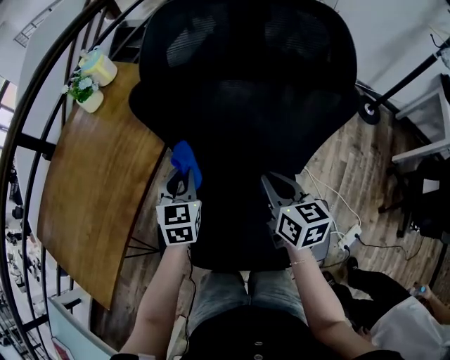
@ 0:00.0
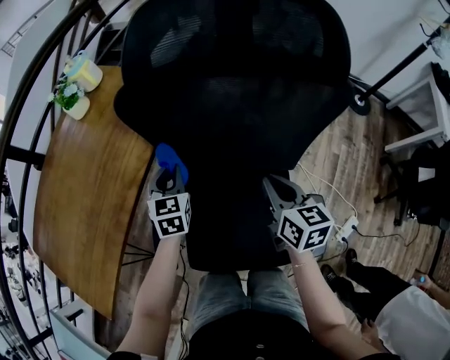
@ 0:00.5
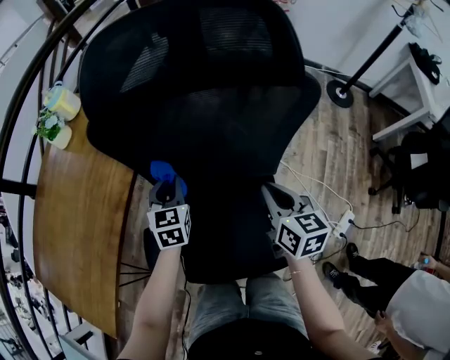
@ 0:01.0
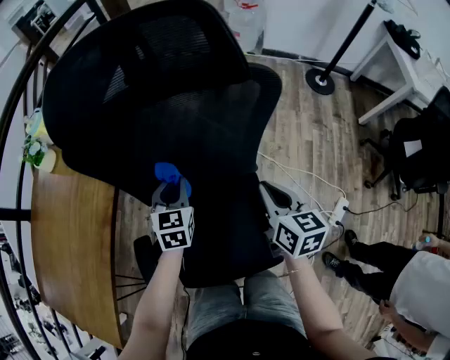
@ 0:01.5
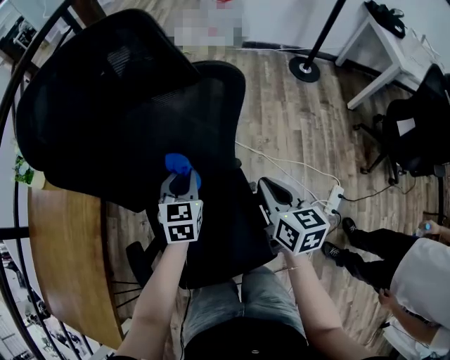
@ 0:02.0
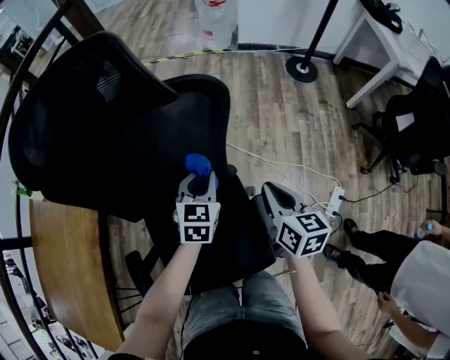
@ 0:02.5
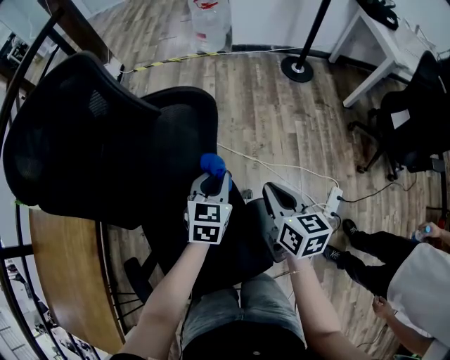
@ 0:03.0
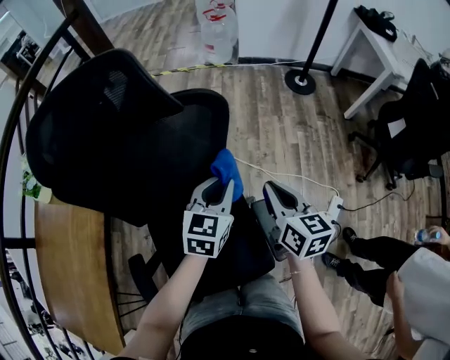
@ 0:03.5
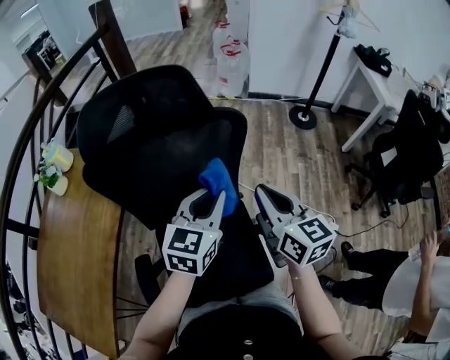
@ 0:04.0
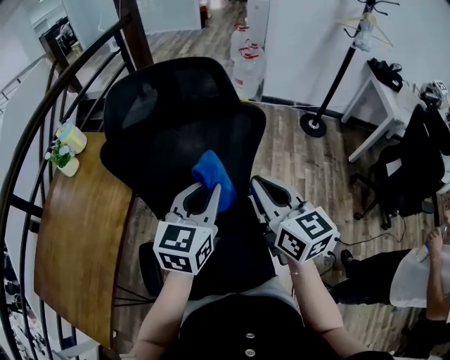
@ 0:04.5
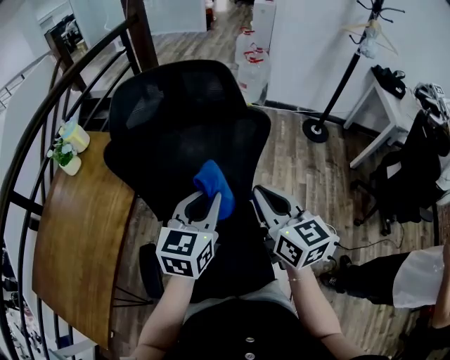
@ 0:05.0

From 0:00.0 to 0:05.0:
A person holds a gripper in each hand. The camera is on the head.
From 0:00.0 to 0:02.5: The left gripper changes place by some 30 cm, and changes its angle by approximately 30 degrees. Meanwhile the right gripper shifts by roughly 25 cm, and swivels some 30 degrees.
From 0:02.5 to 0:05.0: The left gripper heads upward and backward, covering about 25 cm, and changes its angle by roughly 20 degrees, while the right gripper travels upward and to the left by some 25 cm, and changes its angle by roughly 30 degrees.

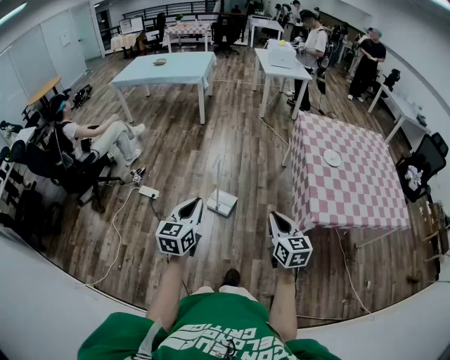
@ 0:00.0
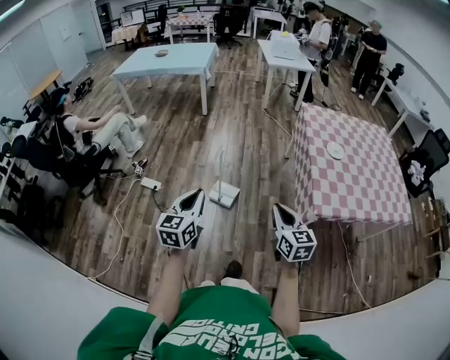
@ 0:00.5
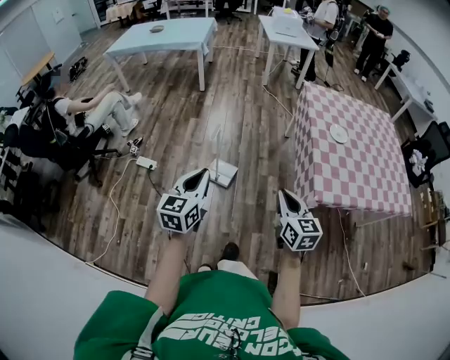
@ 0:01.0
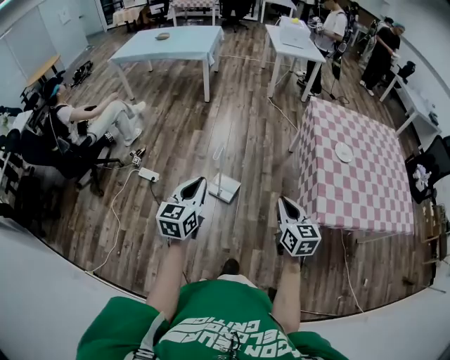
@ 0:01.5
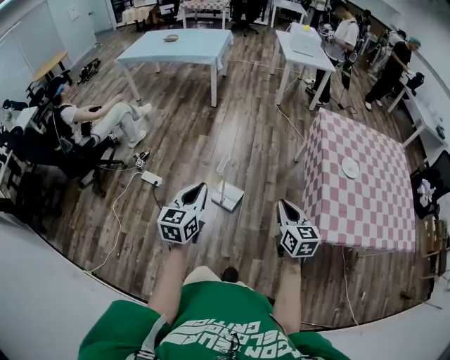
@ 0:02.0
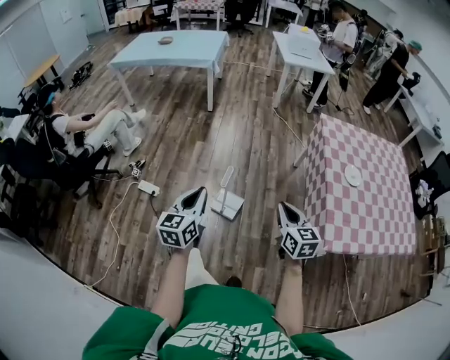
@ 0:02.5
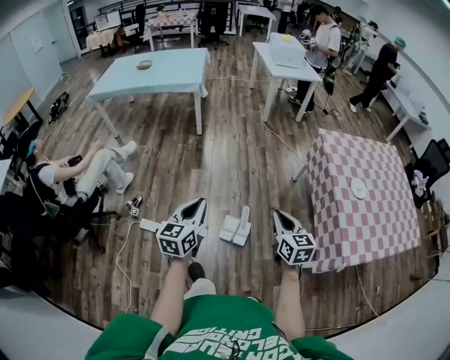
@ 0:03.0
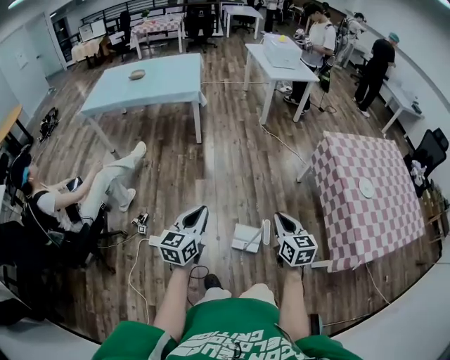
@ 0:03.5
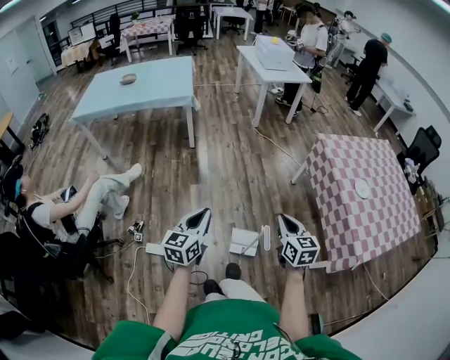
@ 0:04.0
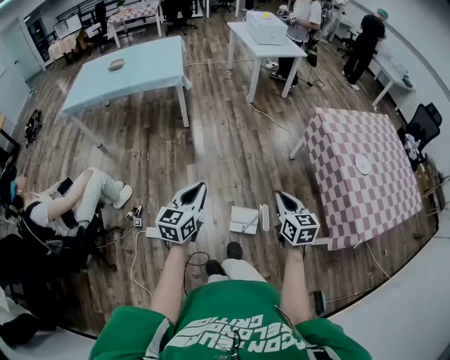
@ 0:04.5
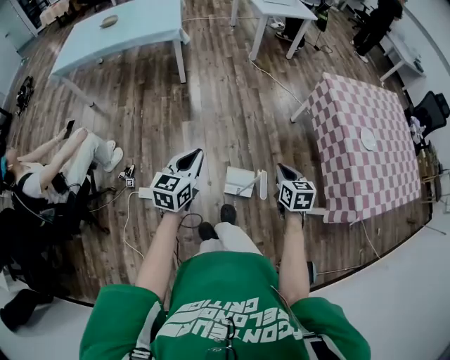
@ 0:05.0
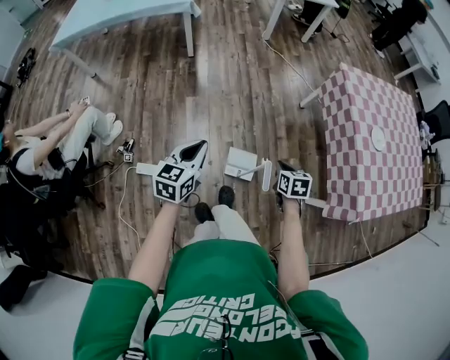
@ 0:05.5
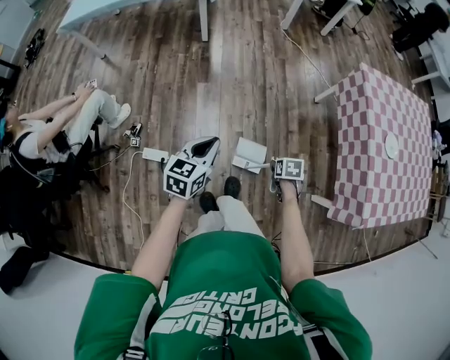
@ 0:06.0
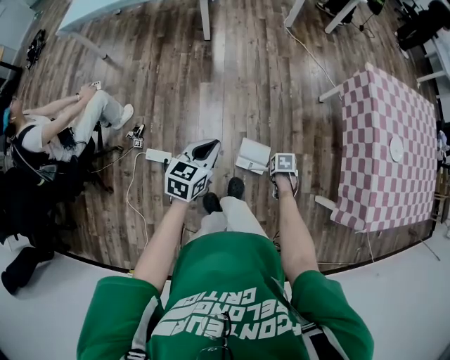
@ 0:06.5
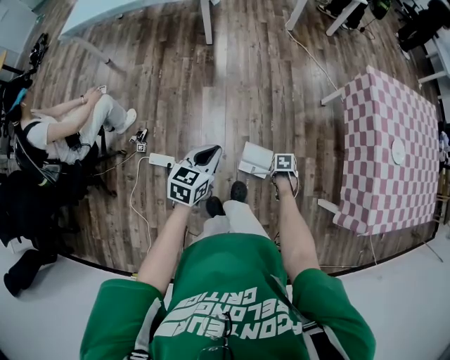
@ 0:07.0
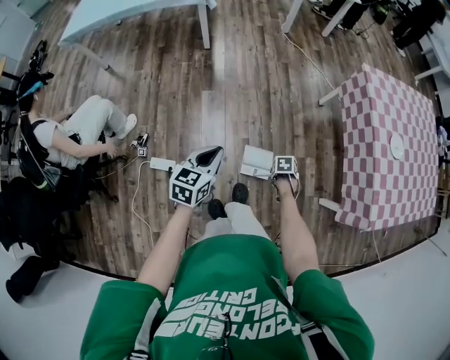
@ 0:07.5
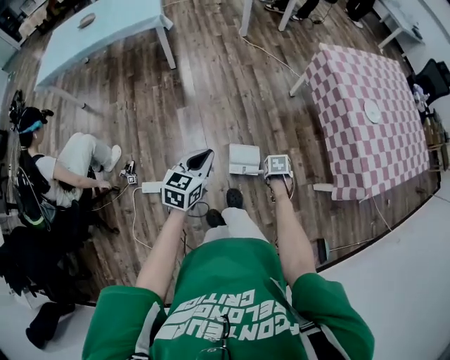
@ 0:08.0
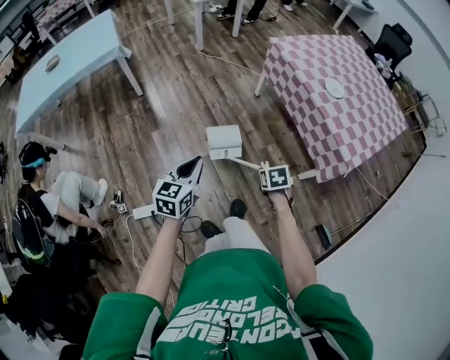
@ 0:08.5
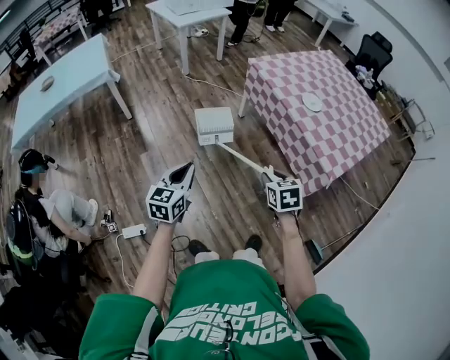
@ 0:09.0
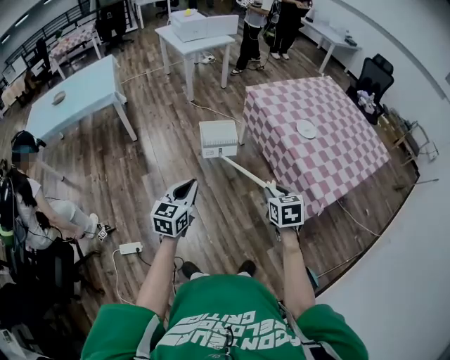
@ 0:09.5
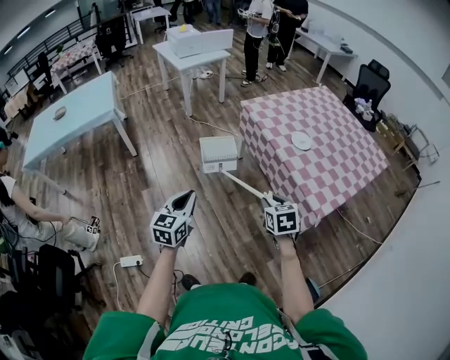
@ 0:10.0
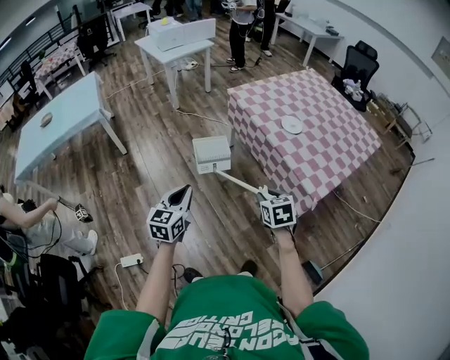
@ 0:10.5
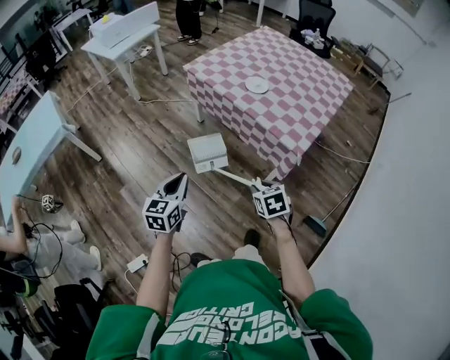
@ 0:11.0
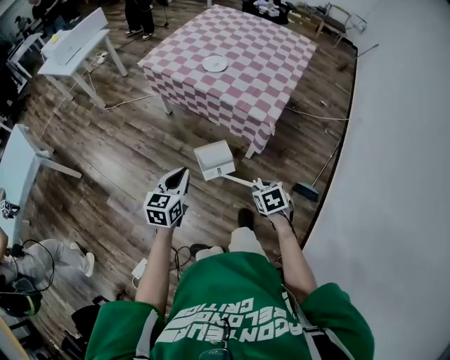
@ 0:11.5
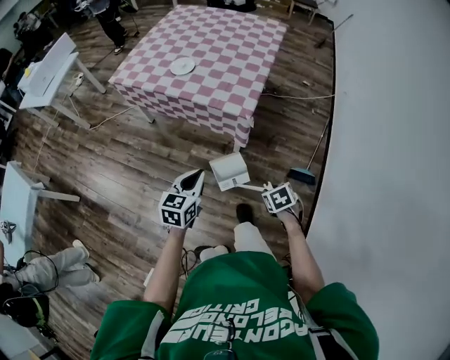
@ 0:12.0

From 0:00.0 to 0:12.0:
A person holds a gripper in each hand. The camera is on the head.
From 0:00.0 to 0:02.0: Both grippers travel together forward, about 15 cm.
From 0:02.0 to 0:04.0: The left gripper goes some 40 cm forward and to the left, and changes its angle by approximately 20 degrees. Meanwhile the right gripper moves to the left and forward, approximately 40 cm.
From 0:04.0 to 0:06.0: The right gripper travels downward by about 30 cm, tips its fingers downward by some 50 degrees, and opens, while the left gripper is displaced downward by roughly 15 cm.
From 0:06.0 to 0:08.0: The right gripper goes downward and returns, approximately 10 cm each way, and closes its fingers.
From 0:08.0 to 0:10.0: The right gripper moves upward, about 30 cm, and points its fingers approximately 40 degrees further upward; the left gripper shifts by approximately 25 cm.
From 0:10.0 to 0:12.0: The left gripper changes place by roughly 30 cm, and changes its angle by approximately 50 degrees. Meanwhile the right gripper shifts by about 40 cm, and rotates some 40 degrees.

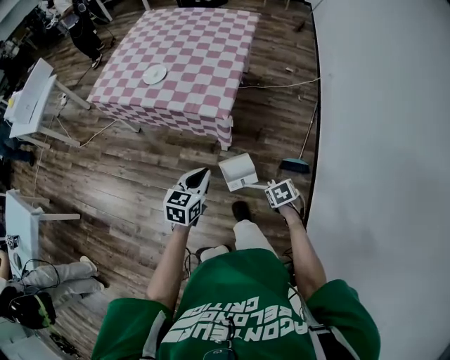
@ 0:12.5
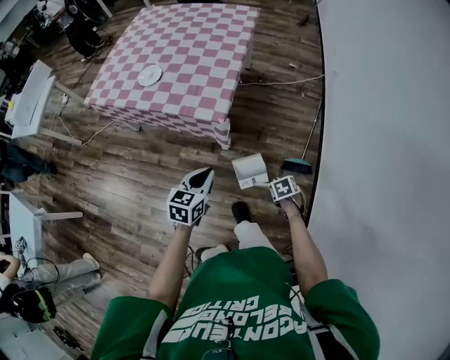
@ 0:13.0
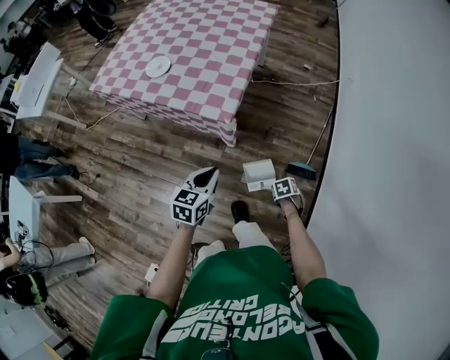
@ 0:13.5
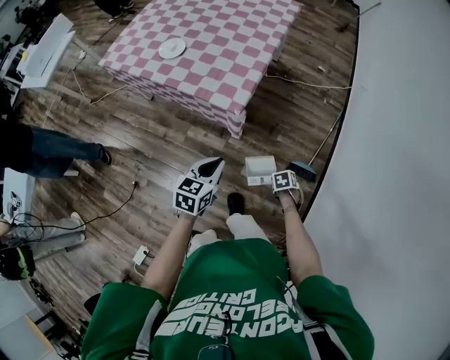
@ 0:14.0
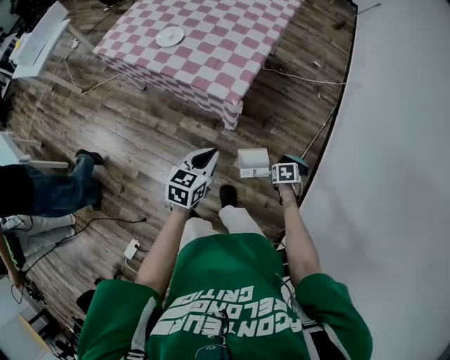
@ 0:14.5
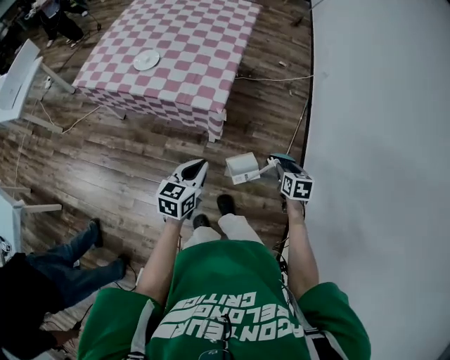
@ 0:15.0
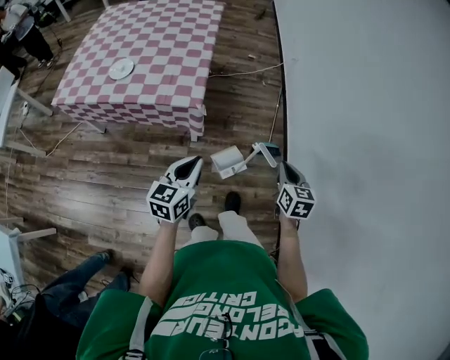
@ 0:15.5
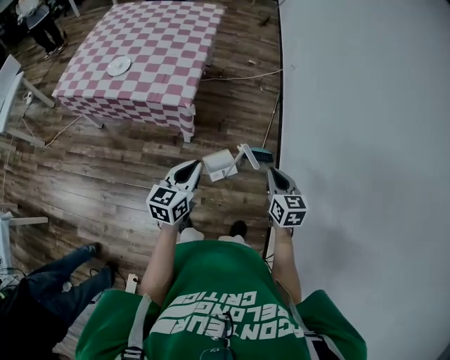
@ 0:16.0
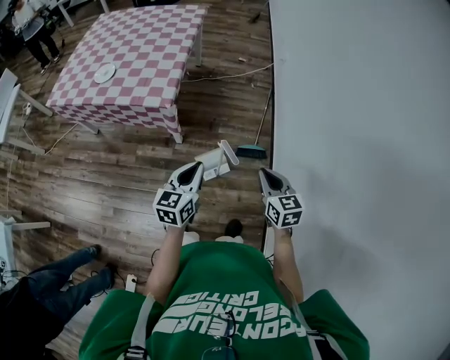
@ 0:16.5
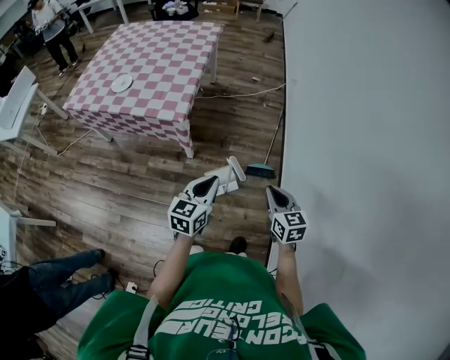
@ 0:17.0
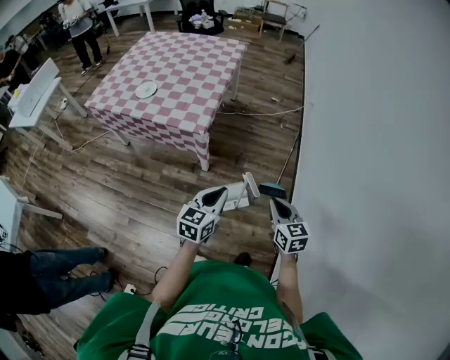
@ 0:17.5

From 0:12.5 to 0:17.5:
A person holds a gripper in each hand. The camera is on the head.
From 0:12.5 to 0:15.0: The right gripper travels downward and back again, about 15 cm each way, and swivels some 30 degrees.
From 0:15.0 to 0:17.5: The left gripper shifts approximately 20 cm to the right; the right gripper shifts roughly 20 cm upward, backward and to the right, rotates roughly 30 degrees, and closes its fingers.

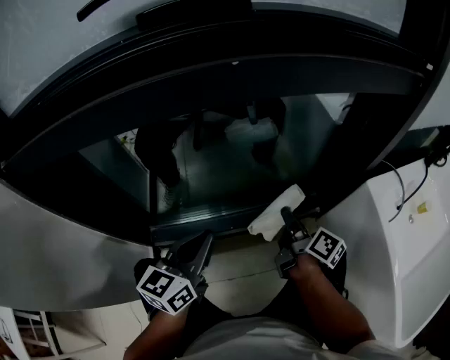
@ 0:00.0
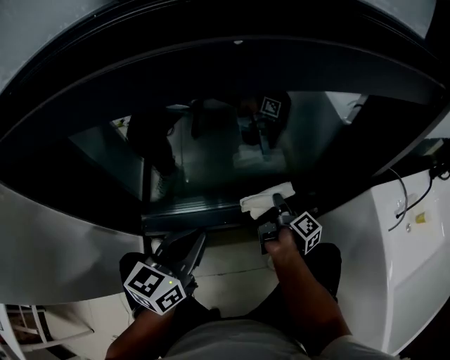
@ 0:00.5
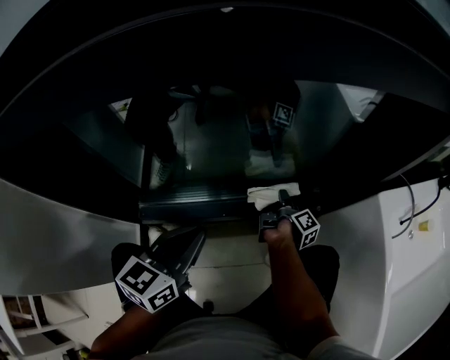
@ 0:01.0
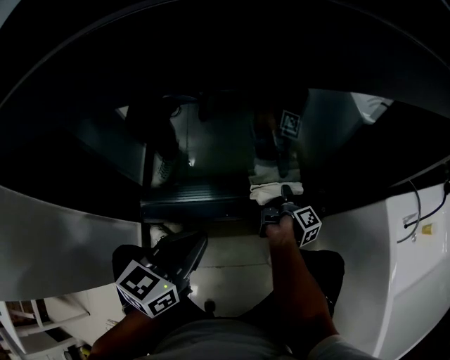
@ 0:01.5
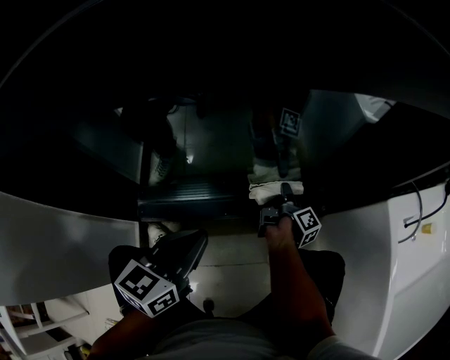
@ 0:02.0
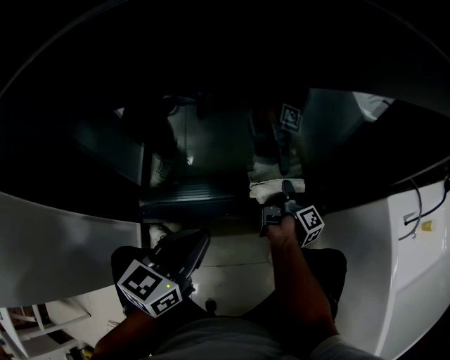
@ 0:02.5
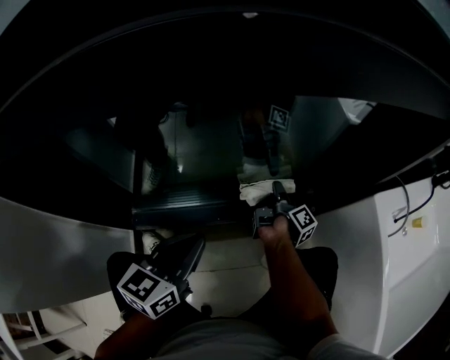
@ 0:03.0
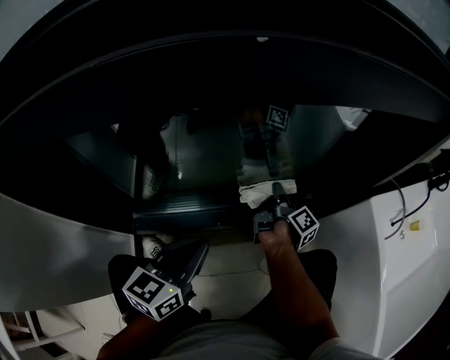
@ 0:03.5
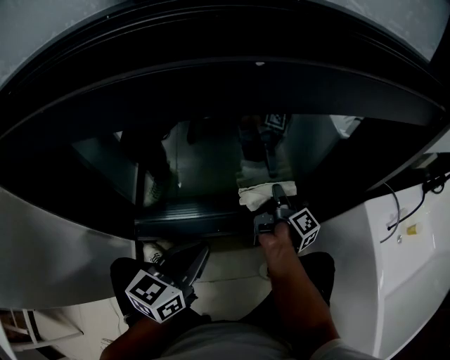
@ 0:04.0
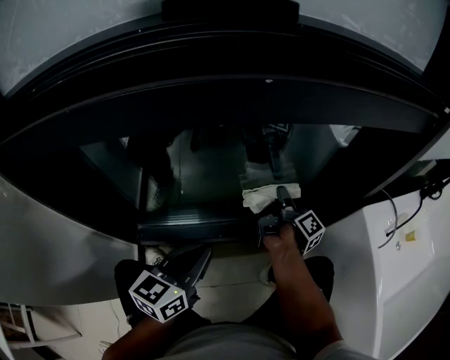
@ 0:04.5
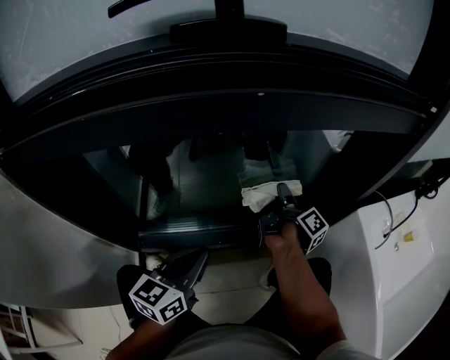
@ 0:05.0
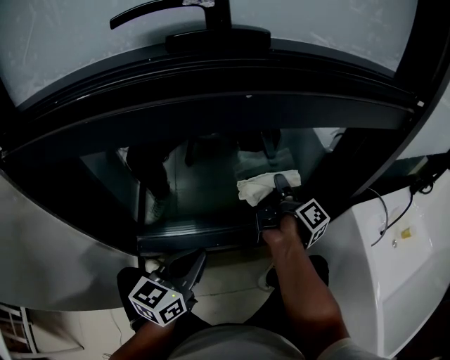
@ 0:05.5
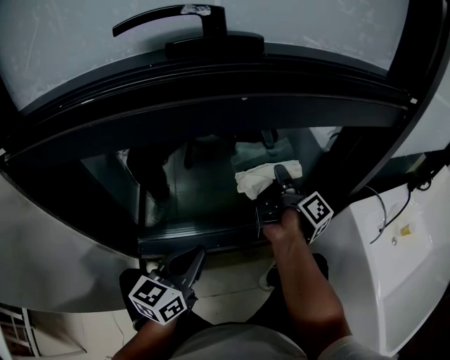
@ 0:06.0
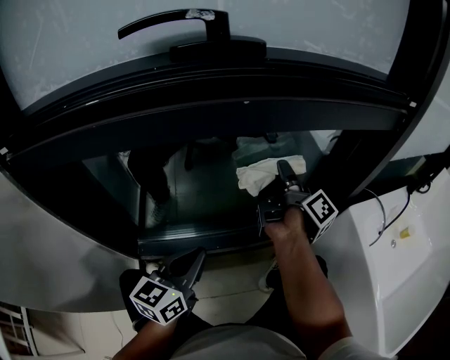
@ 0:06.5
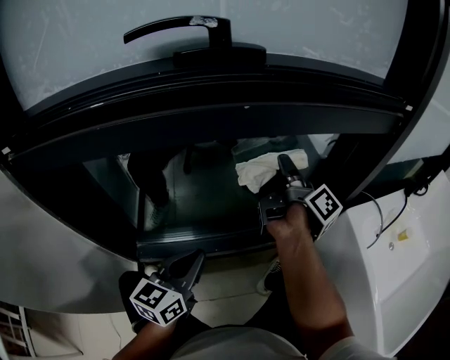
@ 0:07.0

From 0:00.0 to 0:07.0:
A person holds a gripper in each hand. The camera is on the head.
From 0:00.0 to 0:02.0: The left gripper shifts roughly 5 cm downward.
